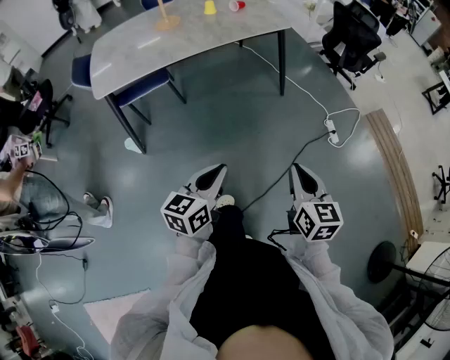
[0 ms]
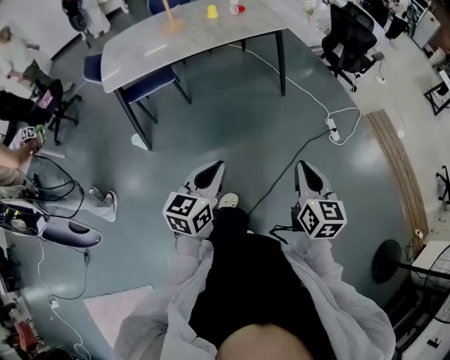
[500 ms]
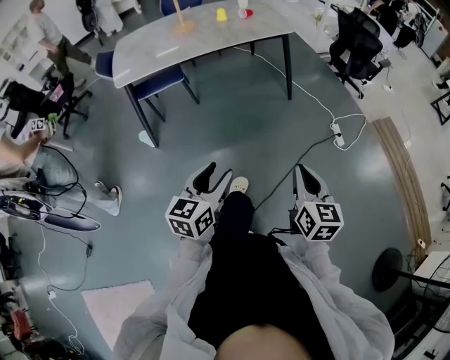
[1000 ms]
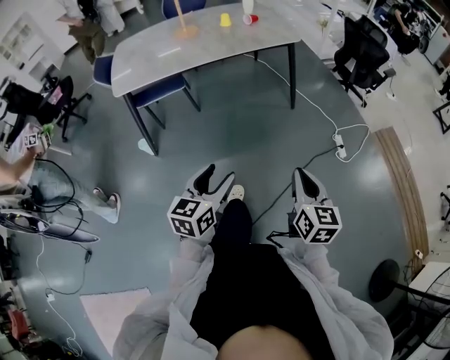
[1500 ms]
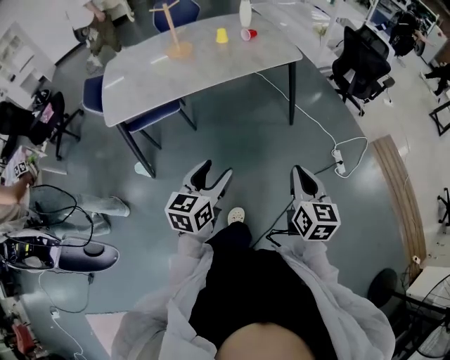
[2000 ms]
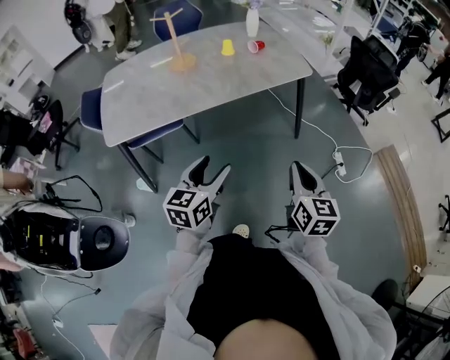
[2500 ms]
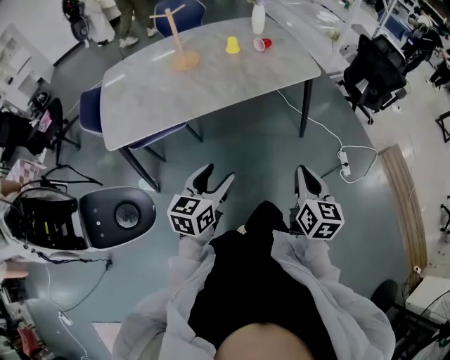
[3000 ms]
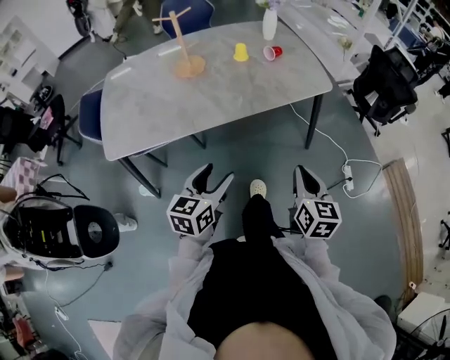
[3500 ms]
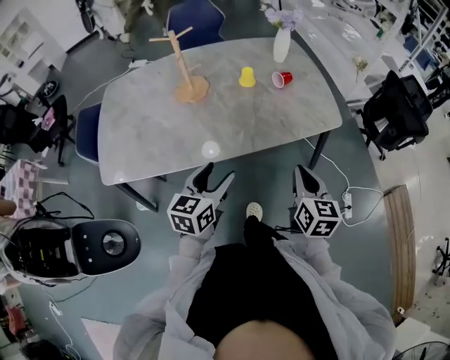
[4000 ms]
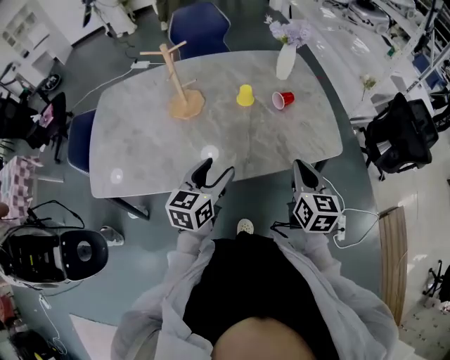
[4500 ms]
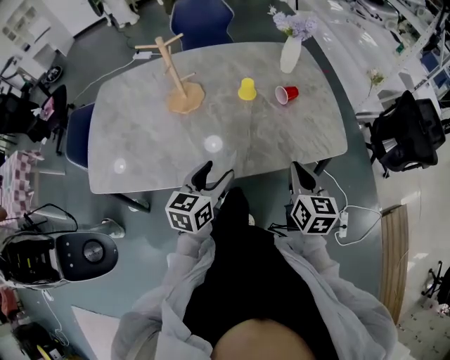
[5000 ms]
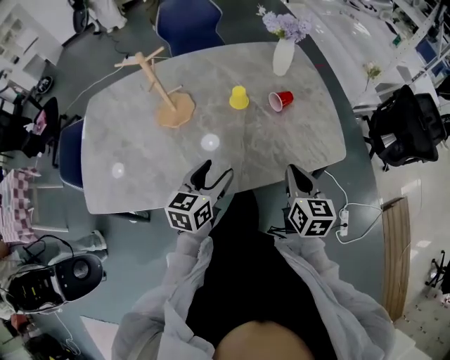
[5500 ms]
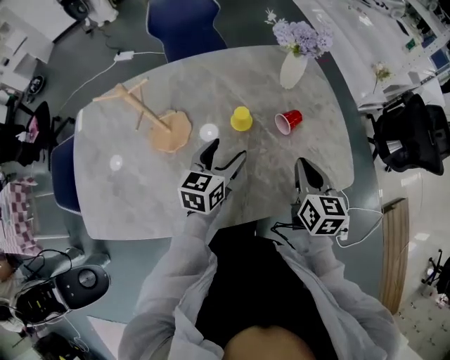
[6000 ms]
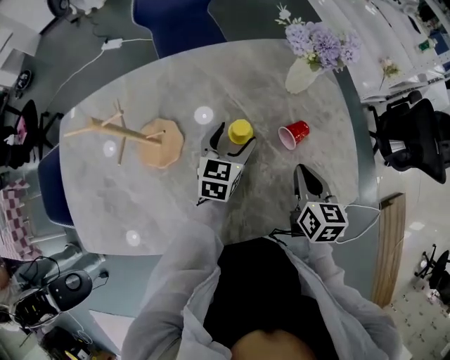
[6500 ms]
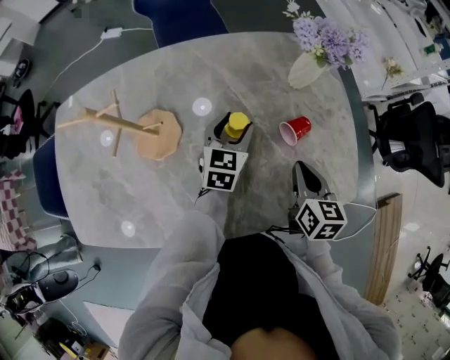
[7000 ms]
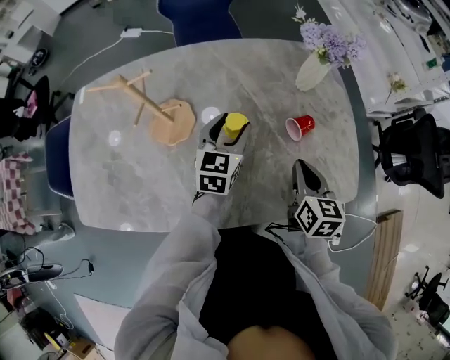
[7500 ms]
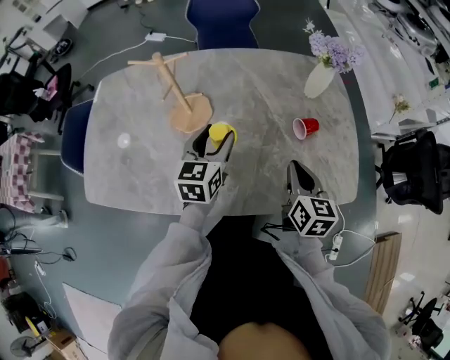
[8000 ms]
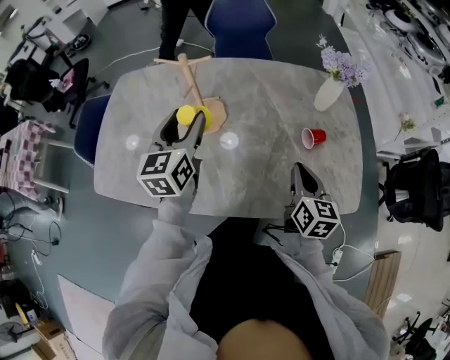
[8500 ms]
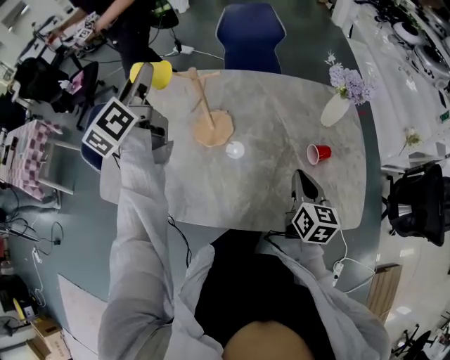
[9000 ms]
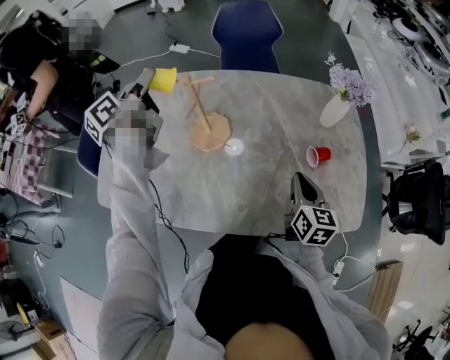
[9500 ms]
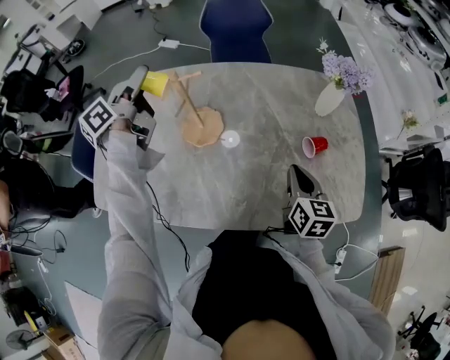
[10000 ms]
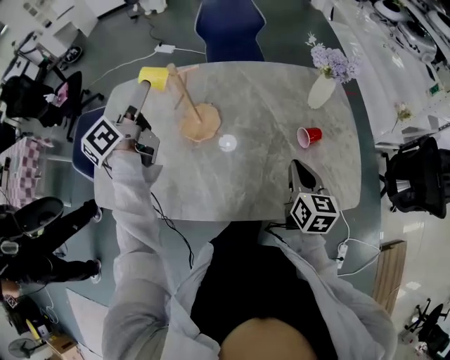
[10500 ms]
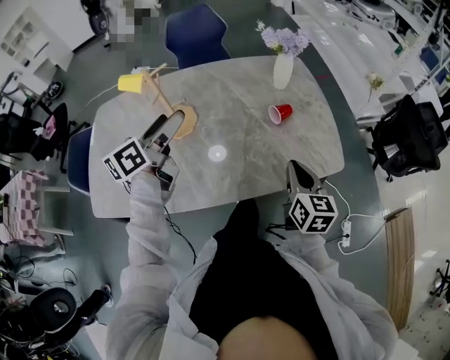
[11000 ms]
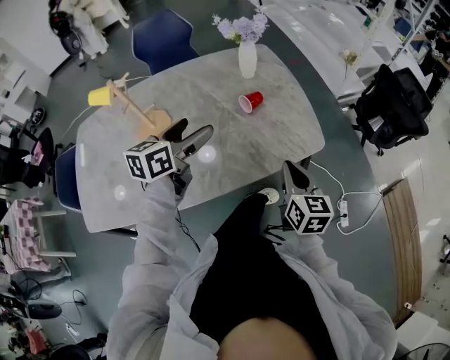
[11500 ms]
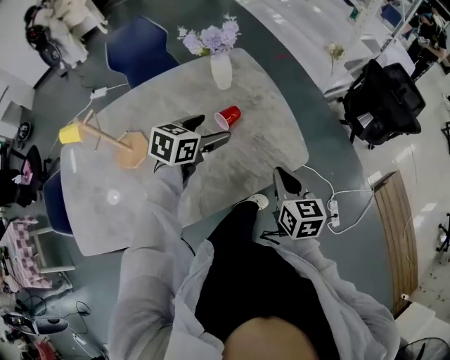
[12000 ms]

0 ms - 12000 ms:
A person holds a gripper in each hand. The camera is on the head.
0 ms - 2000 ms: Both grippers travel together forward, roughly 10 cm. The left gripper opens up.
2000 ms - 4000 ms: The two grippers go roughly 40 cm forward.
4000 ms - 6000 ms: The grippers both shift forward by some 35 cm.
6000 ms - 8000 ms: Both grippers travel together to the left, roughly 5 cm. The left gripper reaches some 15 cm forward, then returns, and rotates some 20 degrees.
8000 ms - 10000 ms: The left gripper travels to the left, forward and upward by roughly 30 cm, and rolls counterclockwise, seen from behind, by roughly 50 degrees; the right gripper changes place by about 5 cm.
10000 ms - 12000 ms: The right gripper moves some 25 cm. Meanwhile the left gripper ends up roughly 50 cm from where it was, and tips its fingers downward by about 30 degrees.

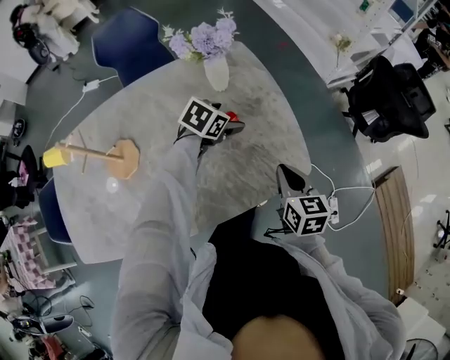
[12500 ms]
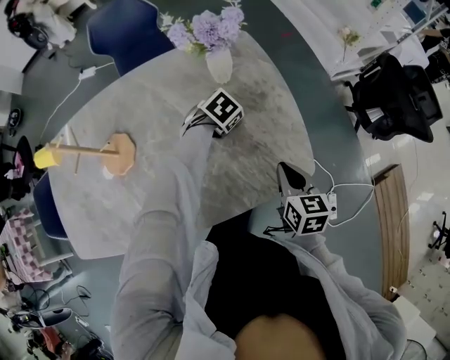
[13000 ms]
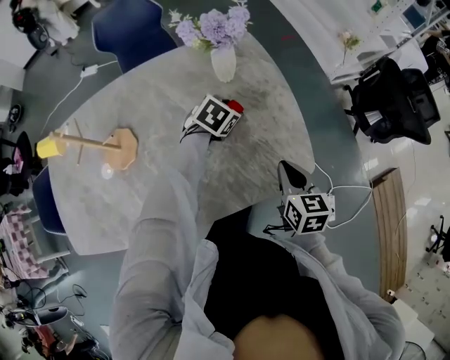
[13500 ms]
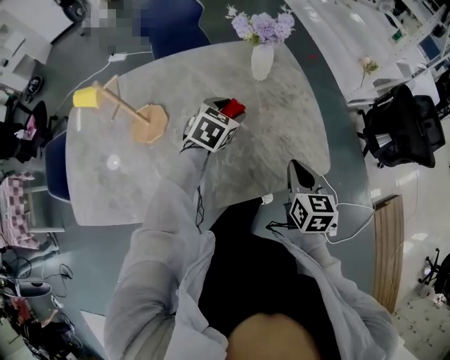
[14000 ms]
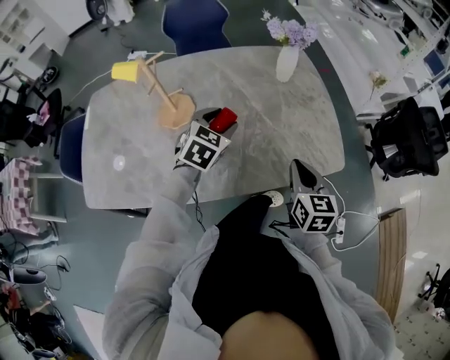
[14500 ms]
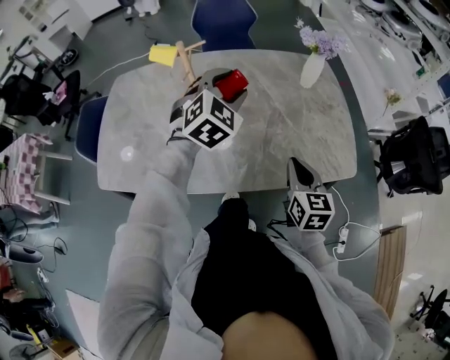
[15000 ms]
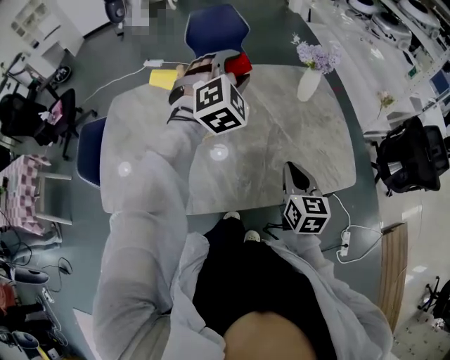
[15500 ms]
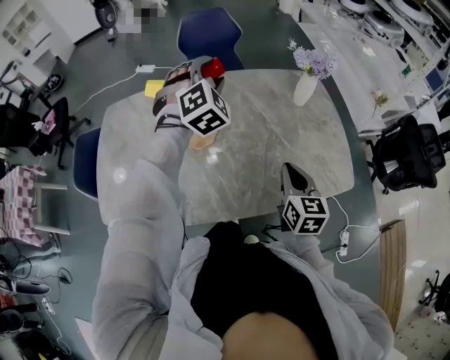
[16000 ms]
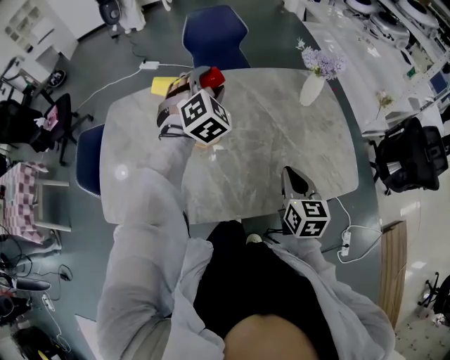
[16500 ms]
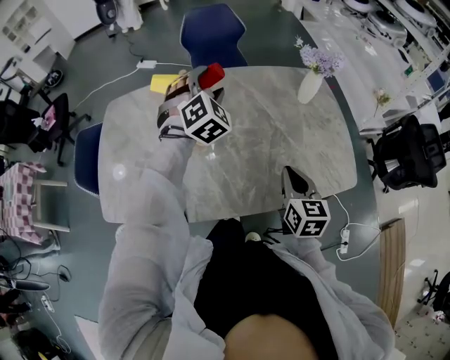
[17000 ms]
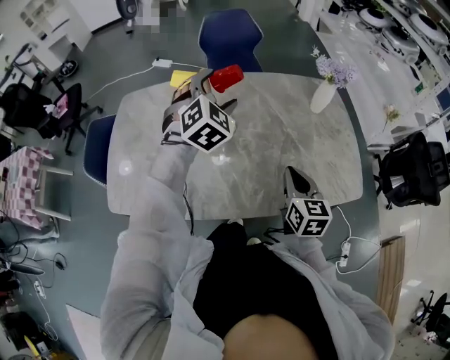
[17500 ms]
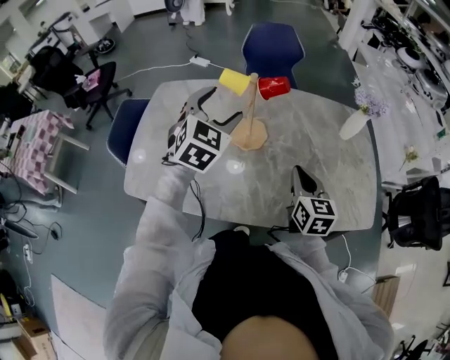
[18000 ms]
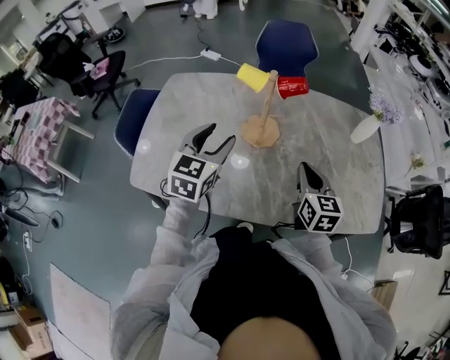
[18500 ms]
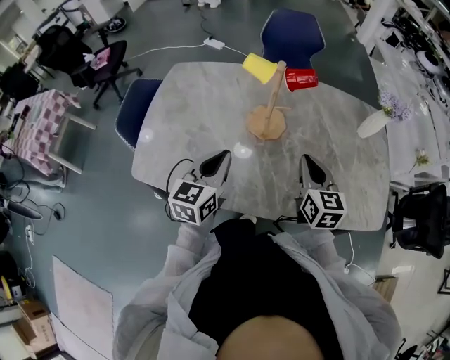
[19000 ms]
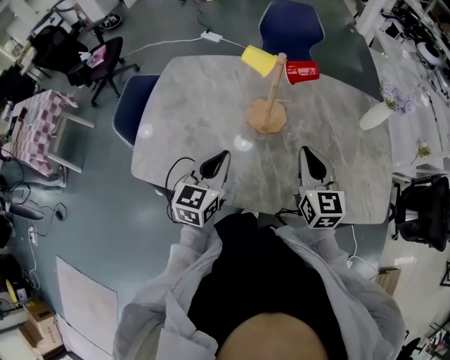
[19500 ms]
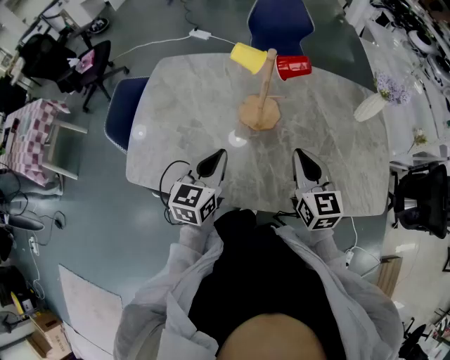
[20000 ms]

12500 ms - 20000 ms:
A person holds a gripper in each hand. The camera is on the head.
12500 ms - 14500 ms: The right gripper shifts approximately 15 cm backward and to the left. The left gripper goes roughly 25 cm backward, to the left and upward, swivels roughly 30 degrees, and closes up.
14500 ms - 16500 ms: The left gripper goes roughly 25 cm to the left, upward and forward, and turns by some 40 degrees. Meanwhile the right gripper goes about 15 cm to the left.
16500 ms - 18000 ms: The right gripper goes about 10 cm to the left; the left gripper is displaced to the left and backward by approximately 15 cm, and turns by approximately 30 degrees.
18000 ms - 20000 ms: The right gripper shifts roughly 5 cm to the left, while the left gripper moves downward and backward, approximately 20 cm, turns by some 40 degrees, and closes up.

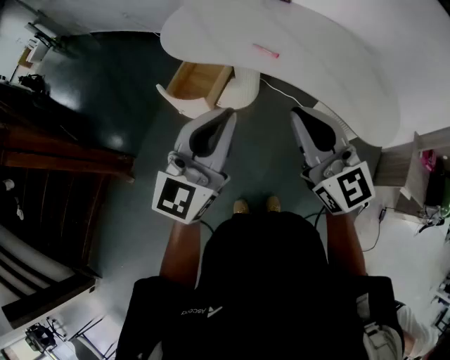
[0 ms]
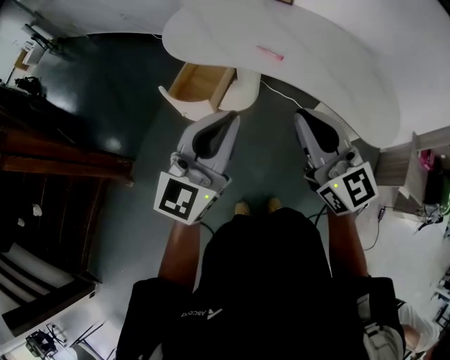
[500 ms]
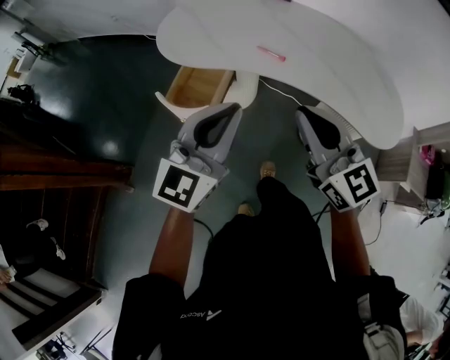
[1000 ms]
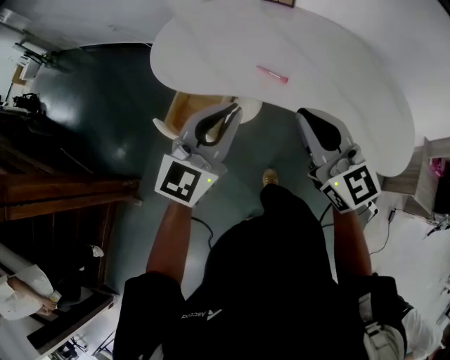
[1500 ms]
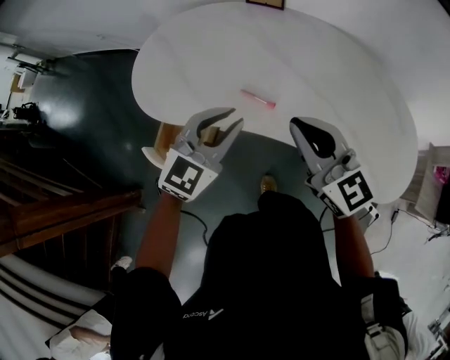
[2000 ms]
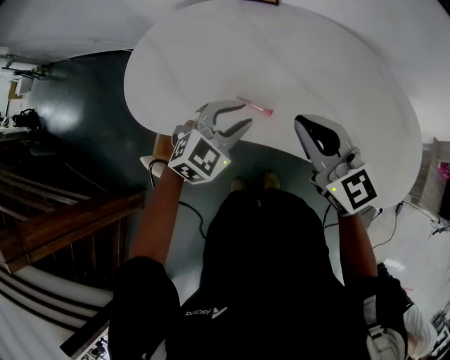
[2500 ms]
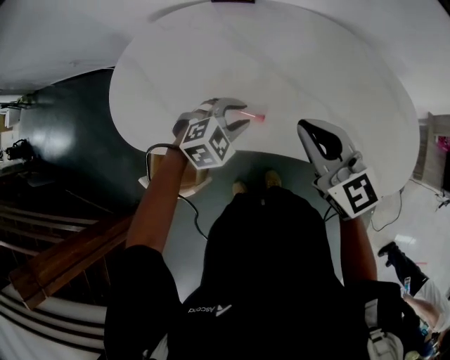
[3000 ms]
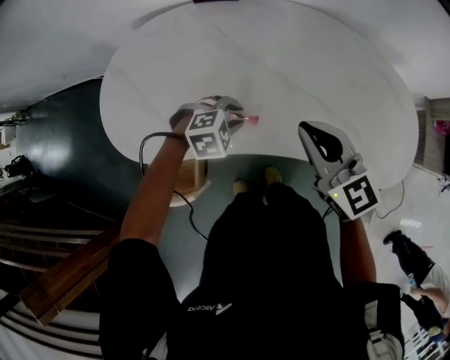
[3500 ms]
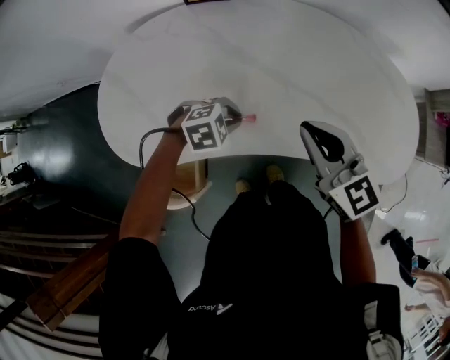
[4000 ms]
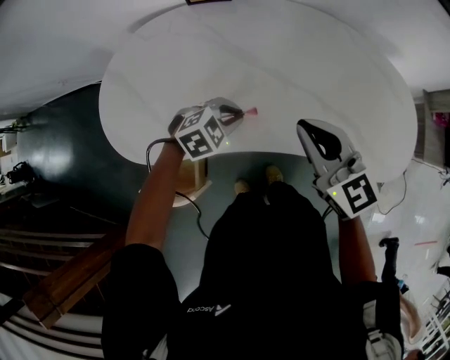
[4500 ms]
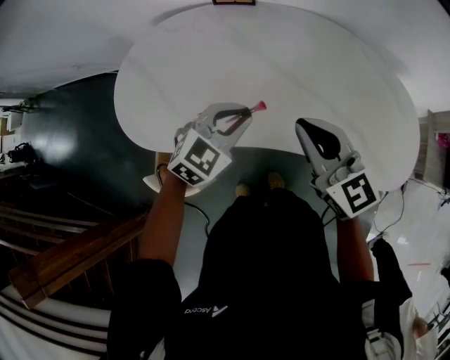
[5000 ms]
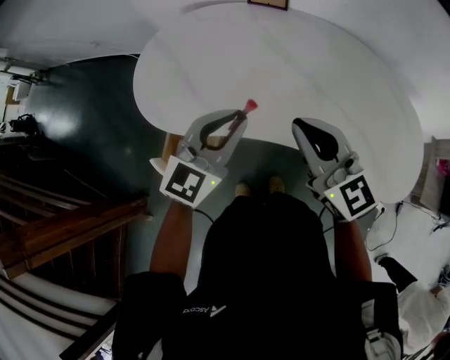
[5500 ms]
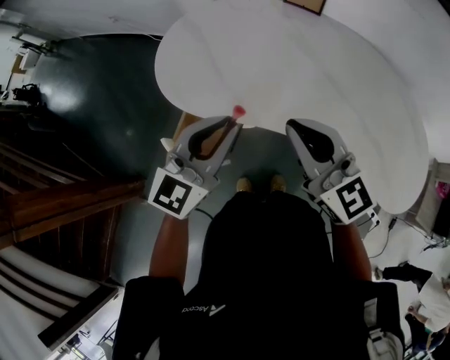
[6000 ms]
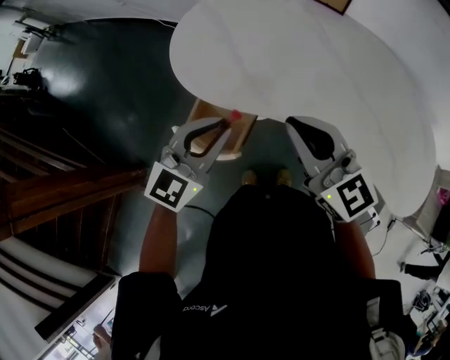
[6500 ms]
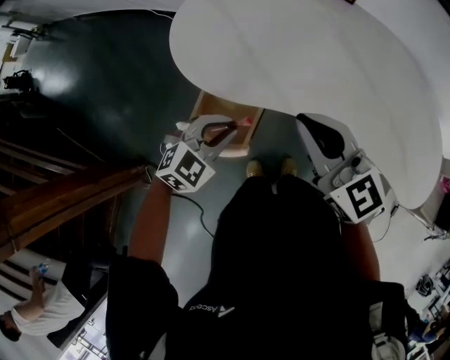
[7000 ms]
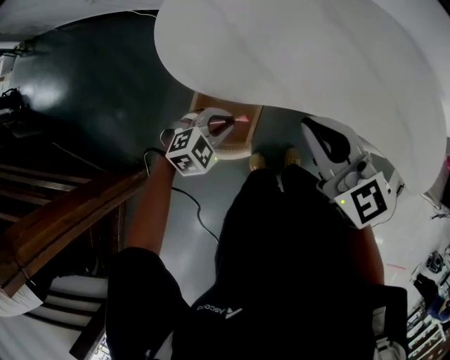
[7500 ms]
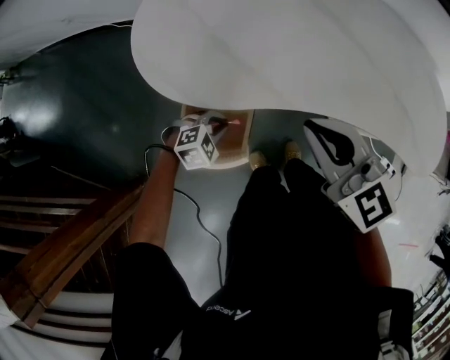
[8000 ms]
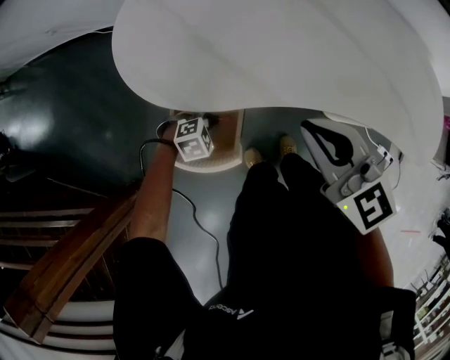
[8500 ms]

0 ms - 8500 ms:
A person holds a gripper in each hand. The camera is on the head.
0 ms - 2000 ms: Both grippers move forward, about 30 cm. The left gripper turns by approximately 30 degrees.
2000 ms - 4000 ms: The left gripper moves downward, roughly 20 cm, and tilts its fingers approximately 50 degrees downward. The right gripper changes place by roughly 10 cm, and swivels roughly 20 degrees.
4000 ms - 6500 ms: The left gripper ends up about 35 cm from where it was, and angles its fingers upward, by some 50 degrees; the right gripper ends up about 30 cm from where it was, and turns by about 30 degrees.
6500 ms - 8500 ms: The right gripper goes roughly 10 cm downward, and rotates roughly 20 degrees, while the left gripper travels downward by about 35 cm, and tilts its fingers about 50 degrees downward.
